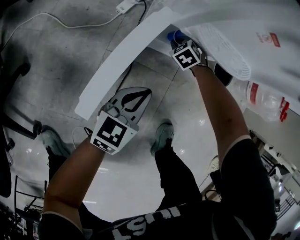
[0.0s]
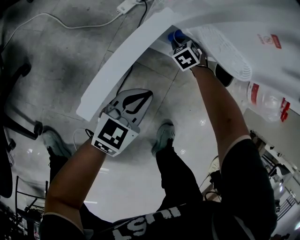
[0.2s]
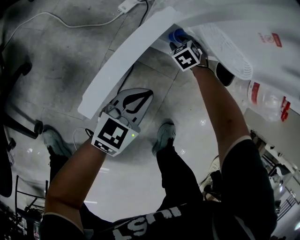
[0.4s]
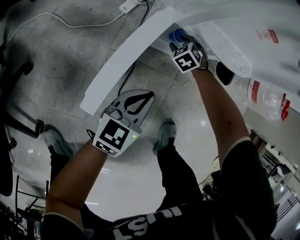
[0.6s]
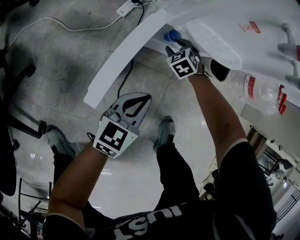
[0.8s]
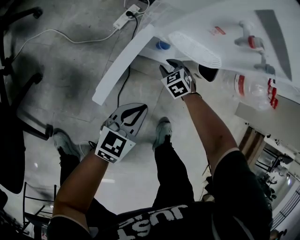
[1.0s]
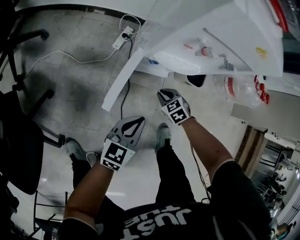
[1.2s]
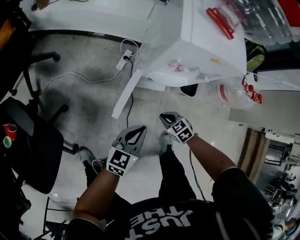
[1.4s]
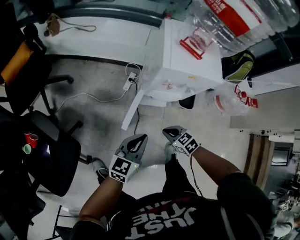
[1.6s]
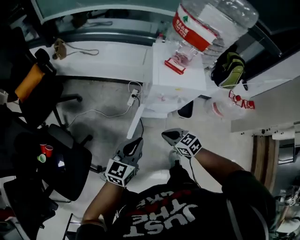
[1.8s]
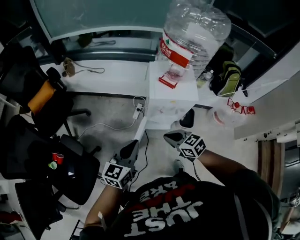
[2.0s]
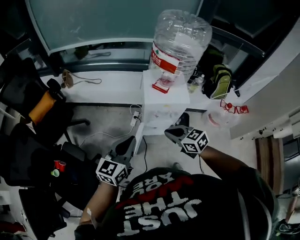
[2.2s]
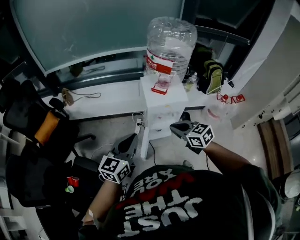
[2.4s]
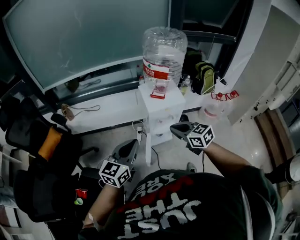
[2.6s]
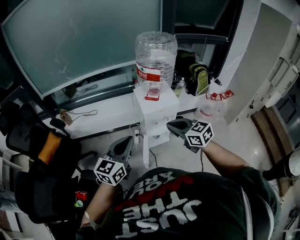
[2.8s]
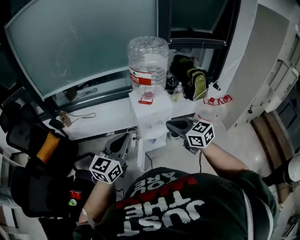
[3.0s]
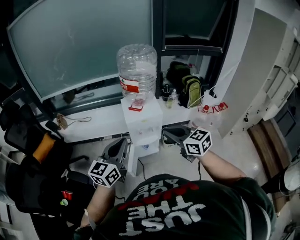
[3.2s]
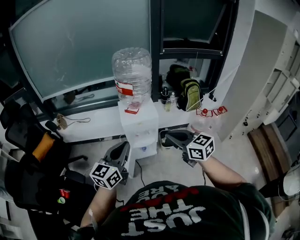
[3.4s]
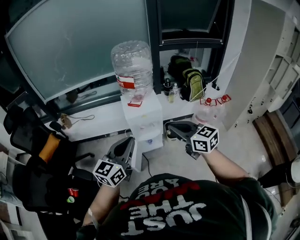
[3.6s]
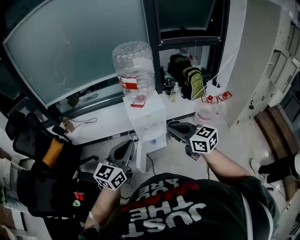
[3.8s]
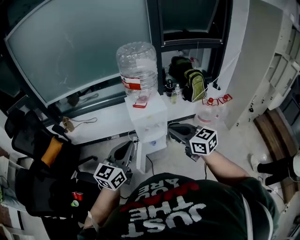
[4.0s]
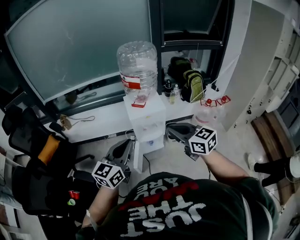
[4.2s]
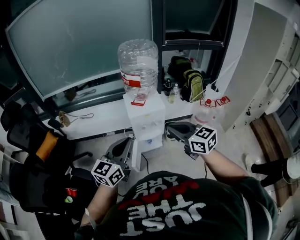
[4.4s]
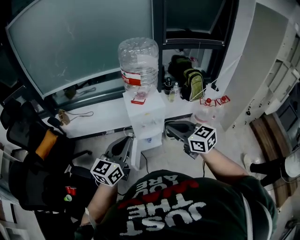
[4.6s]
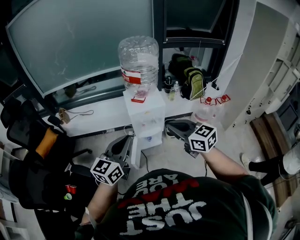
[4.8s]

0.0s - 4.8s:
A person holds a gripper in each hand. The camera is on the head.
0.0s - 1.6s: The grippers both shift upward by approximately 40 cm. The right gripper rotates approximately 40 degrees, and opens and closes again.
1.6s - 3.2s: Both grippers move upward, approximately 50 cm. The right gripper tips its fingers upward by roughly 40 degrees.

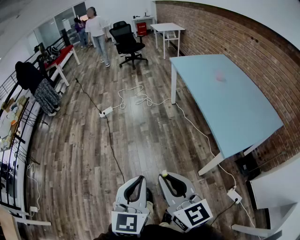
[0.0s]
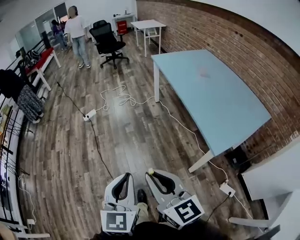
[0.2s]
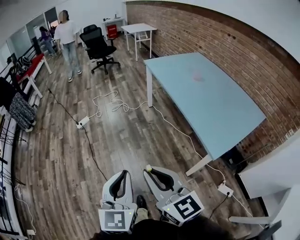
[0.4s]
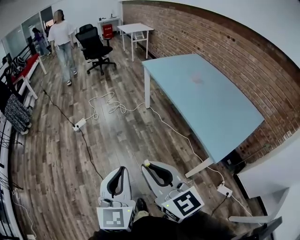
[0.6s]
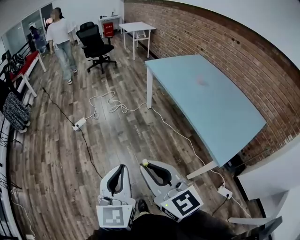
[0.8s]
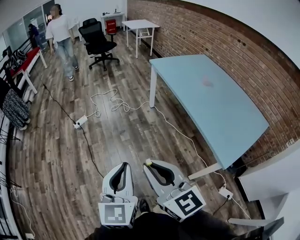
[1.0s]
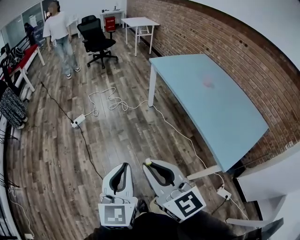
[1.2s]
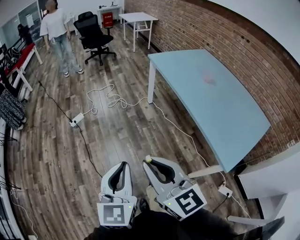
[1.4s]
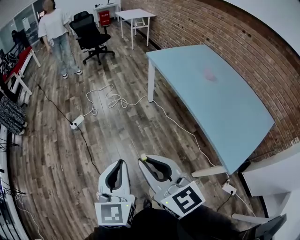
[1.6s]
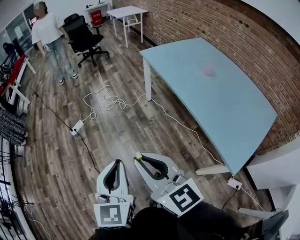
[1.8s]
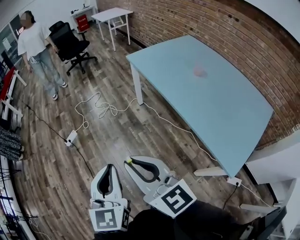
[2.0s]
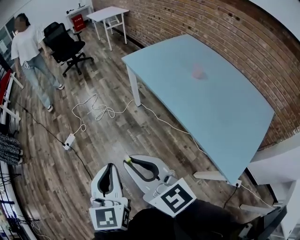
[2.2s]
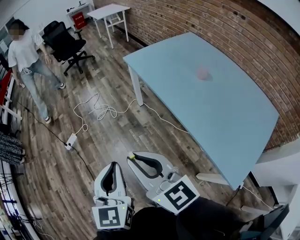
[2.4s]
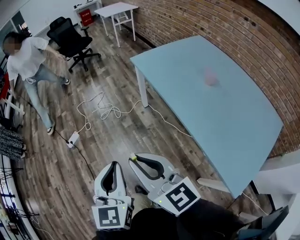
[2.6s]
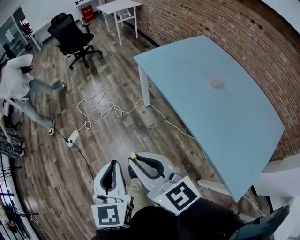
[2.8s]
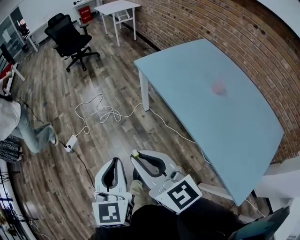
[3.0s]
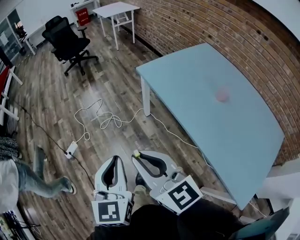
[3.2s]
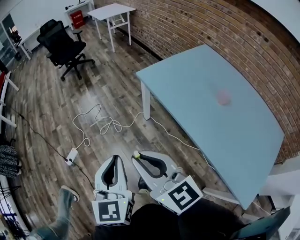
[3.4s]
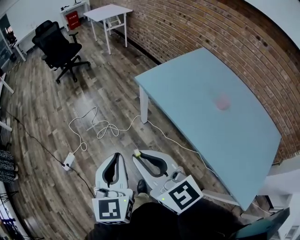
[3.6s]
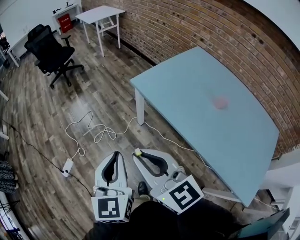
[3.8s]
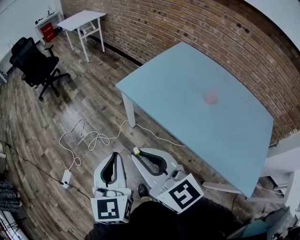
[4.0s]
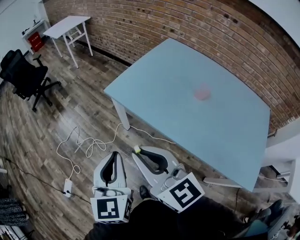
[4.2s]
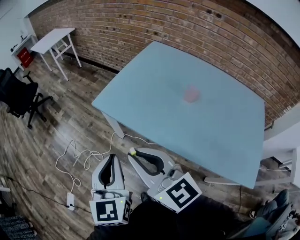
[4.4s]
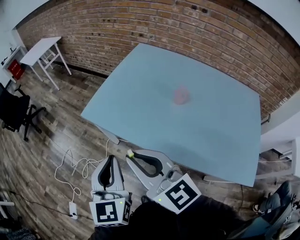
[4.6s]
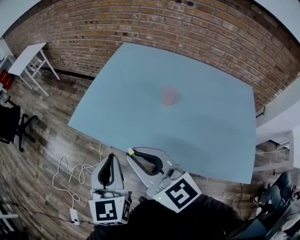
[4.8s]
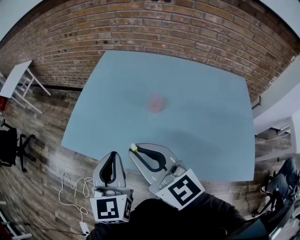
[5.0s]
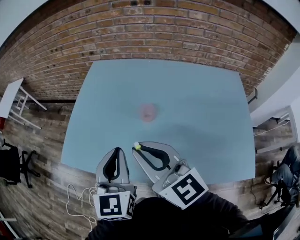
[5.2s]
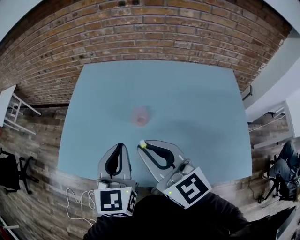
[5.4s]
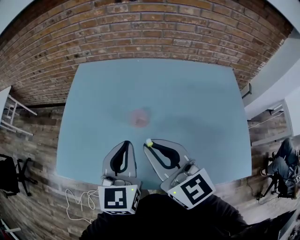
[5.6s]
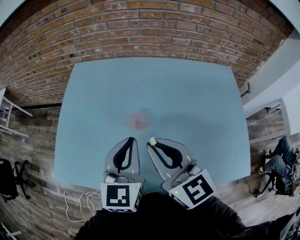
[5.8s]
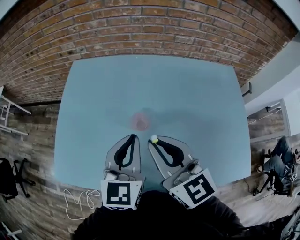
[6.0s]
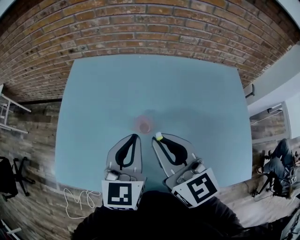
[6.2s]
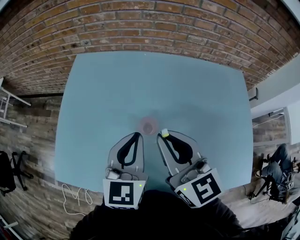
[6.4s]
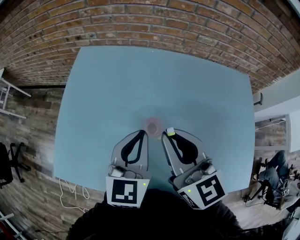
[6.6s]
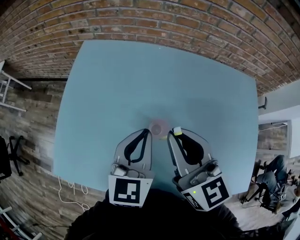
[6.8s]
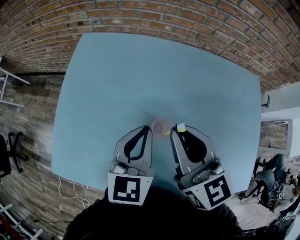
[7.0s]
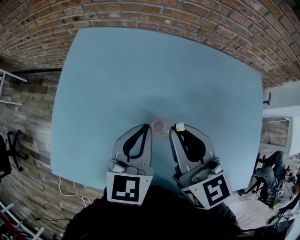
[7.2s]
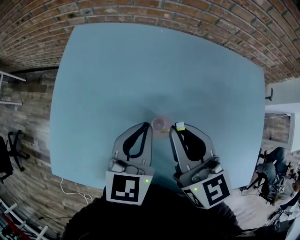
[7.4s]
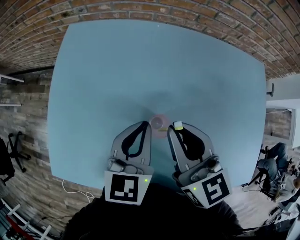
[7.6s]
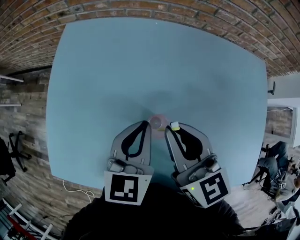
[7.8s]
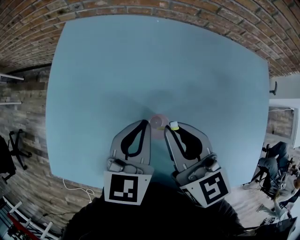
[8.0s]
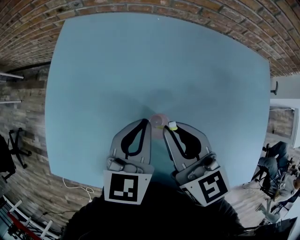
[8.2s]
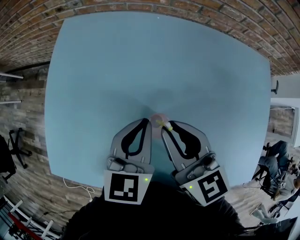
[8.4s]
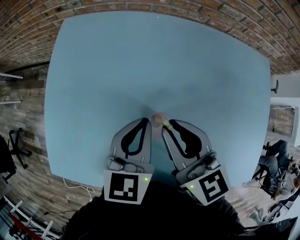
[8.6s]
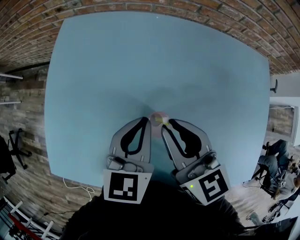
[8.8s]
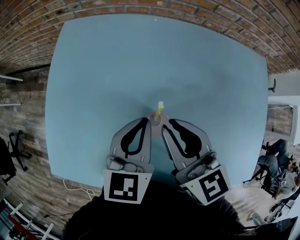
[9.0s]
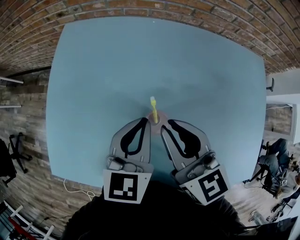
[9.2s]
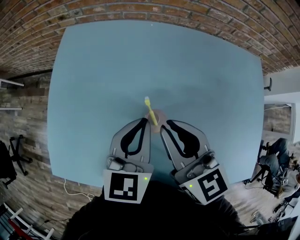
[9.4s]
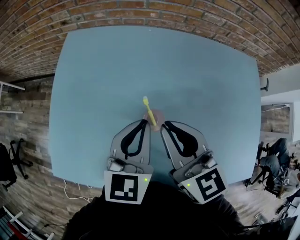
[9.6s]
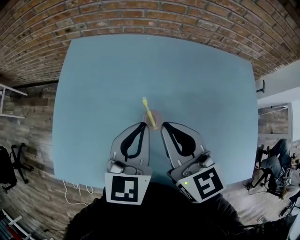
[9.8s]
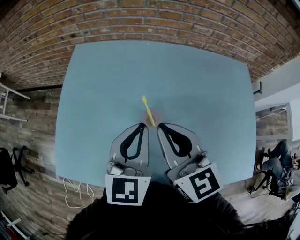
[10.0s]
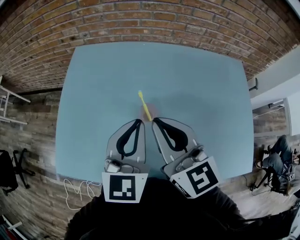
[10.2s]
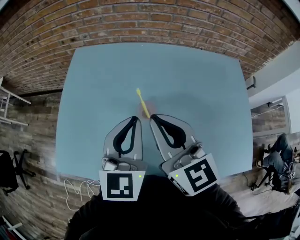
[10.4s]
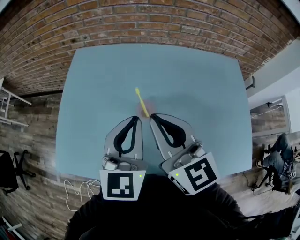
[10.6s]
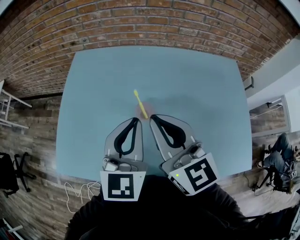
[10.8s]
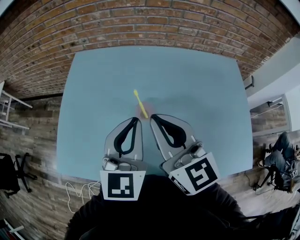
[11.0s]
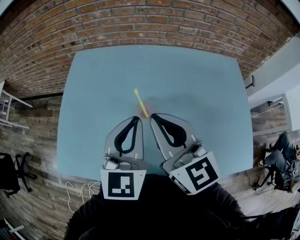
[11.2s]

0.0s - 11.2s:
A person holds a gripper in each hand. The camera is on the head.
0.0s - 1.6s: The two grippers go approximately 35 cm forward.
1.6s - 3.2s: The grippers both shift forward by about 40 cm.
3.2s - 4.8s: The left gripper moves approximately 35 cm, and swivels some 40 degrees. Meanwhile the right gripper shifts by roughly 30 cm, and turns by roughly 30 degrees.
4.8s - 6.4s: The right gripper moves approximately 30 cm, and changes its angle by roughly 30 degrees, while the left gripper changes place by some 35 cm, and turns by about 30 degrees.
6.4s - 8.0s: The grippers both shift downward and forward by about 10 cm.
8.0s - 9.6s: The grippers move only a little.
9.6s - 11.2s: Both grippers travel together upward and backward, approximately 10 cm.

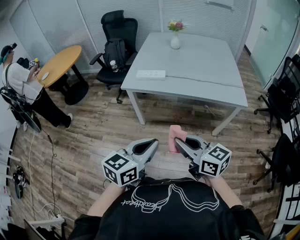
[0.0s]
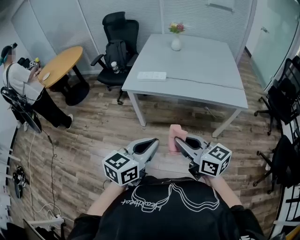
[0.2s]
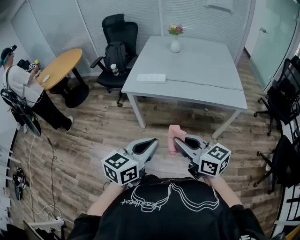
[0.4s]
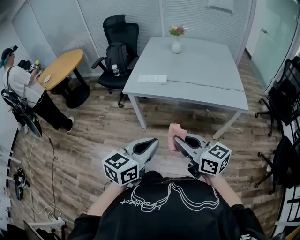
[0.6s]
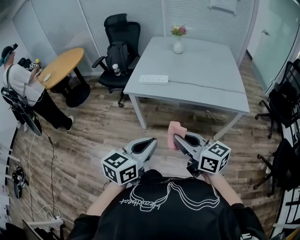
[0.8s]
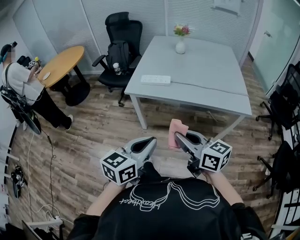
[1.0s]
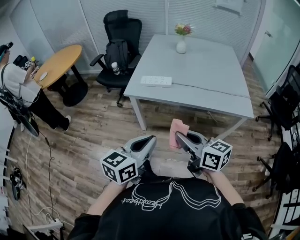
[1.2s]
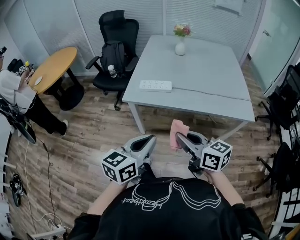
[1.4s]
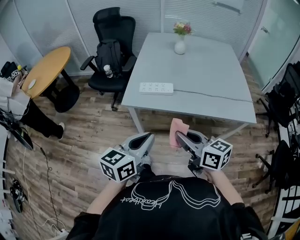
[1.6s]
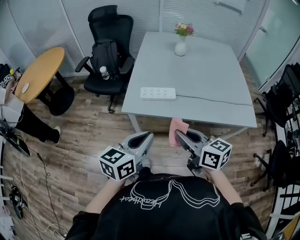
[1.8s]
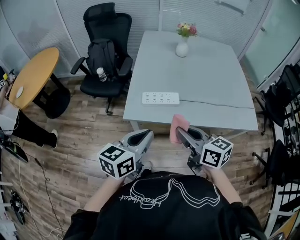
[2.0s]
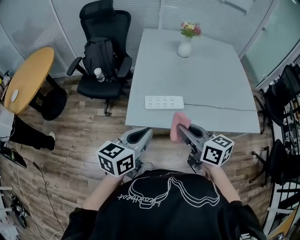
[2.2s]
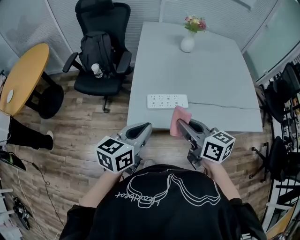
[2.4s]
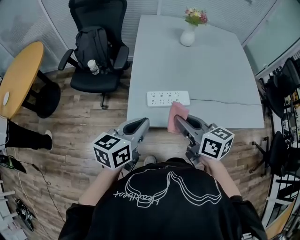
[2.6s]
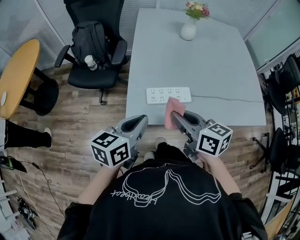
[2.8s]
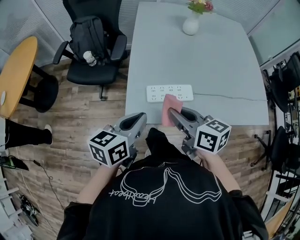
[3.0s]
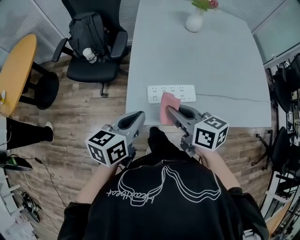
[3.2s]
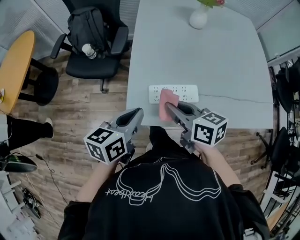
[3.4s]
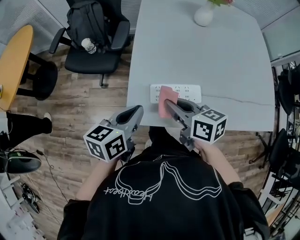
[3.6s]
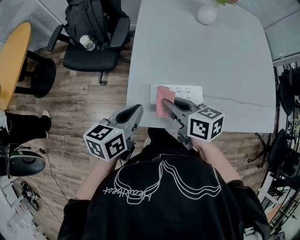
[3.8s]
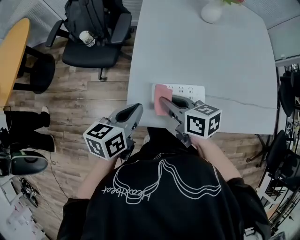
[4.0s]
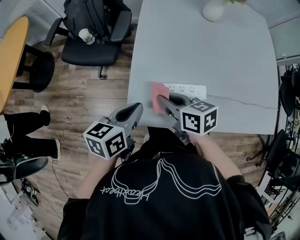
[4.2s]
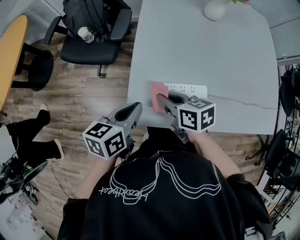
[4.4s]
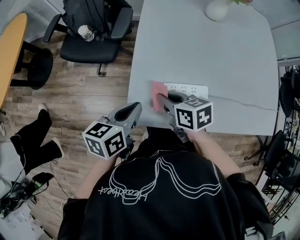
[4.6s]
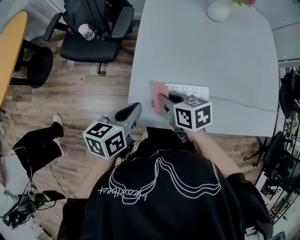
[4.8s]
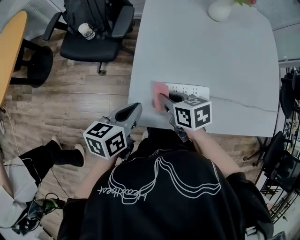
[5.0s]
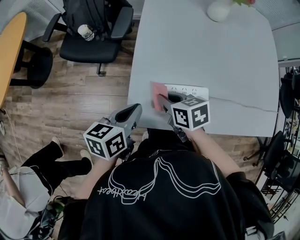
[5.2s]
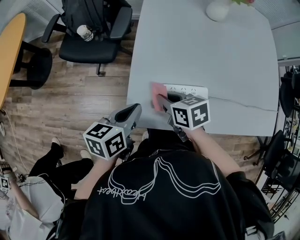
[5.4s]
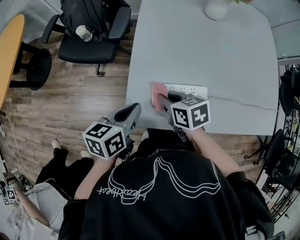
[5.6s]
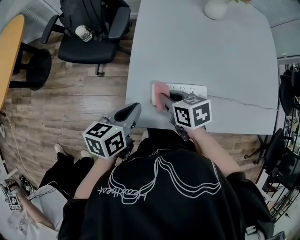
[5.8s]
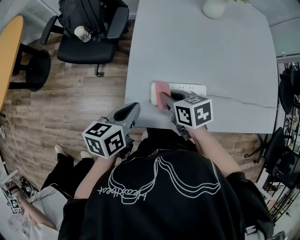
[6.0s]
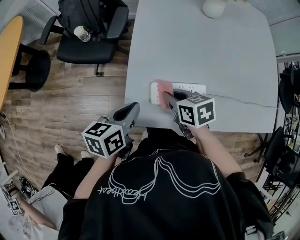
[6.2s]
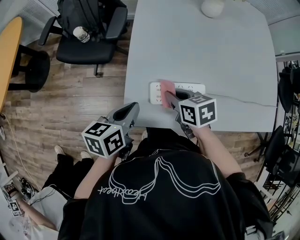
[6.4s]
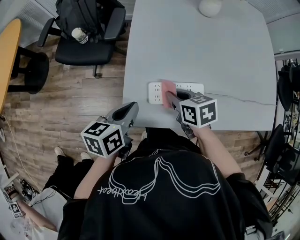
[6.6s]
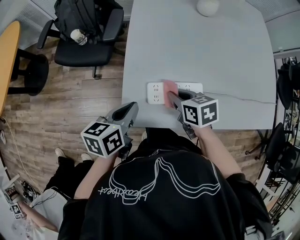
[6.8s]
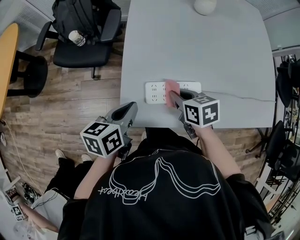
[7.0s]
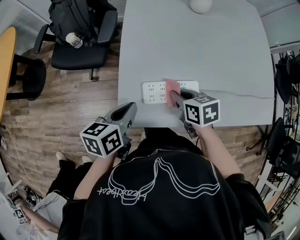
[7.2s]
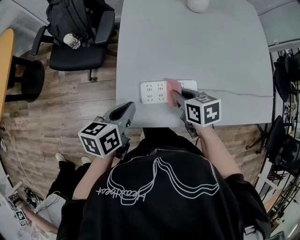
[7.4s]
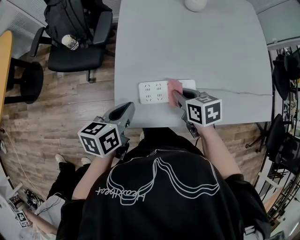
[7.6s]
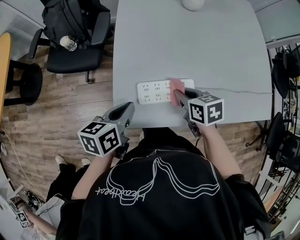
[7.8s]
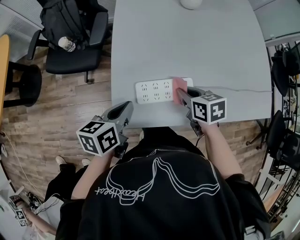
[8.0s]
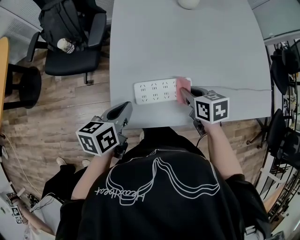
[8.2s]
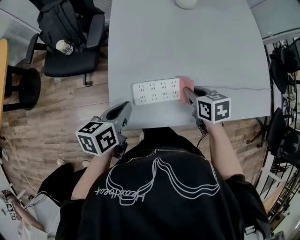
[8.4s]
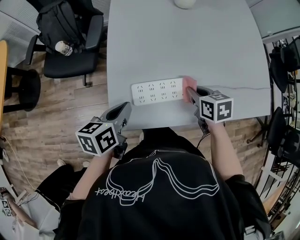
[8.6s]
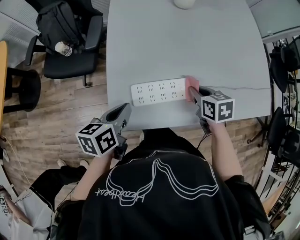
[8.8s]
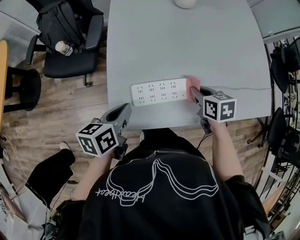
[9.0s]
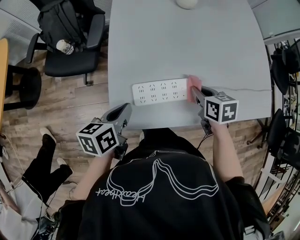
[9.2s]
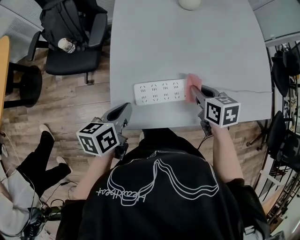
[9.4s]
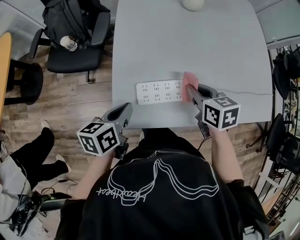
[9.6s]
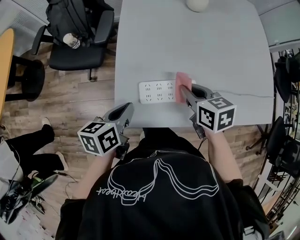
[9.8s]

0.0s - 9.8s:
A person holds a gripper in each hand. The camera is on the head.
0.0s - 1.4s: The right gripper heads forward, covering some 15 cm. Meanwhile the left gripper heads forward and to the left, covering some 15 cm.
1.4s - 2.8s: Both grippers travel together forward and to the left, about 35 cm.
2.8s - 4.2s: The right gripper moves downward, forward and to the left, roughly 20 cm. The left gripper travels forward and downward by some 15 cm.
4.2s - 5.6s: The right gripper moves downward, about 5 cm.
5.6s - 7.0s: The right gripper goes about 5 cm to the right.
7.0s - 8.4s: The right gripper is displaced to the right by some 10 cm.
8.4s - 9.8s: The right gripper heads to the left and upward, covering approximately 10 cm.
